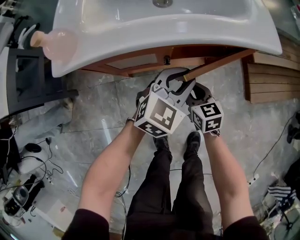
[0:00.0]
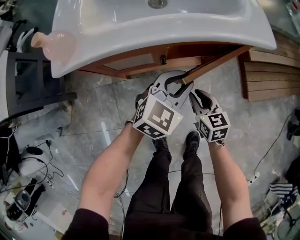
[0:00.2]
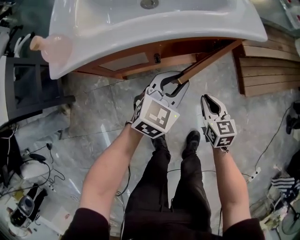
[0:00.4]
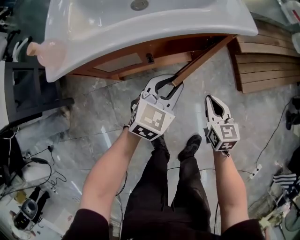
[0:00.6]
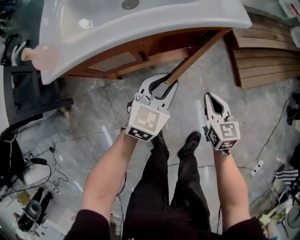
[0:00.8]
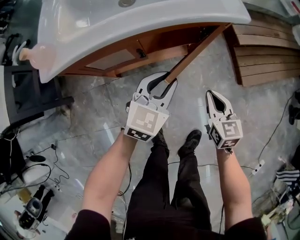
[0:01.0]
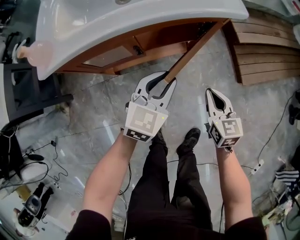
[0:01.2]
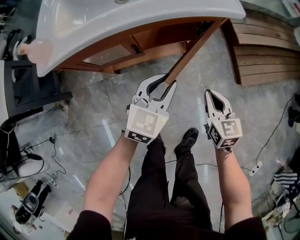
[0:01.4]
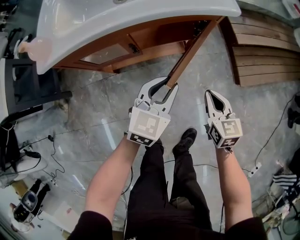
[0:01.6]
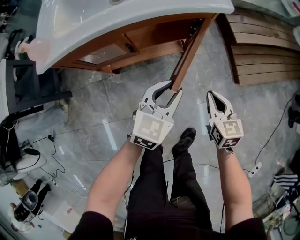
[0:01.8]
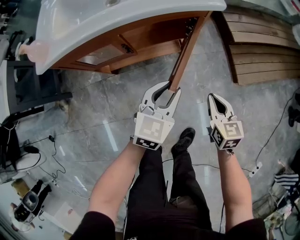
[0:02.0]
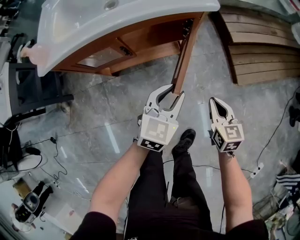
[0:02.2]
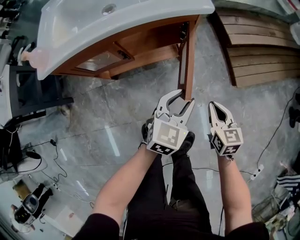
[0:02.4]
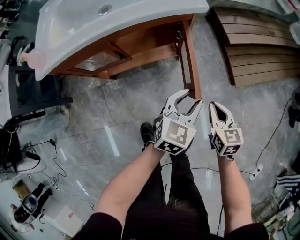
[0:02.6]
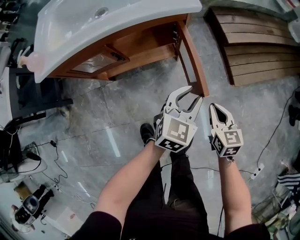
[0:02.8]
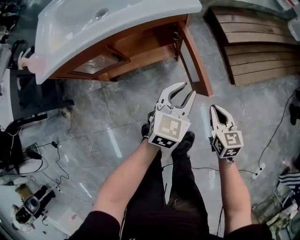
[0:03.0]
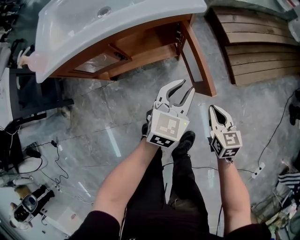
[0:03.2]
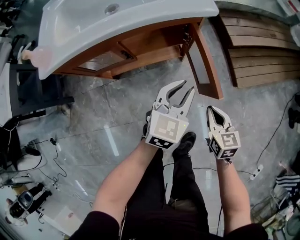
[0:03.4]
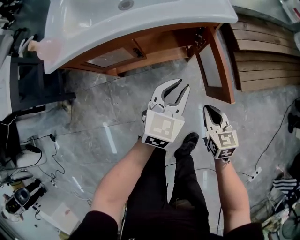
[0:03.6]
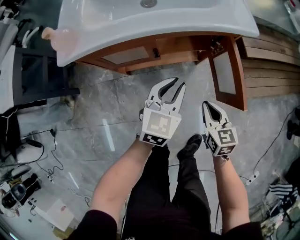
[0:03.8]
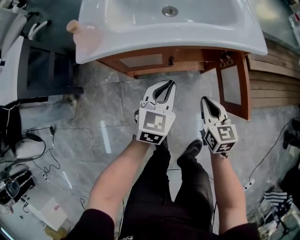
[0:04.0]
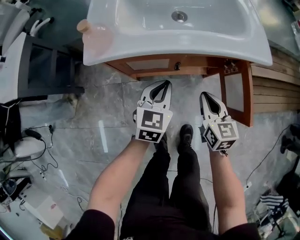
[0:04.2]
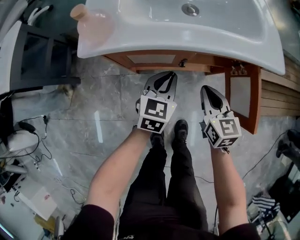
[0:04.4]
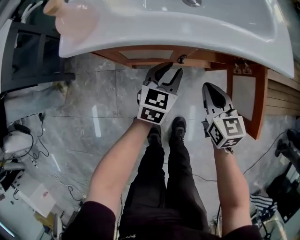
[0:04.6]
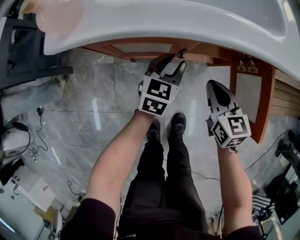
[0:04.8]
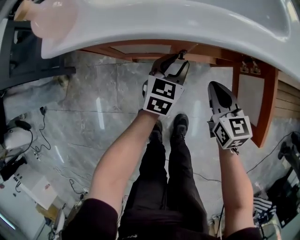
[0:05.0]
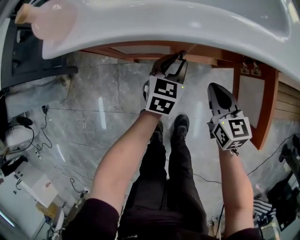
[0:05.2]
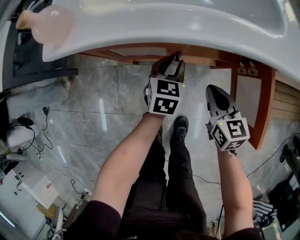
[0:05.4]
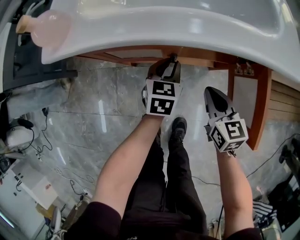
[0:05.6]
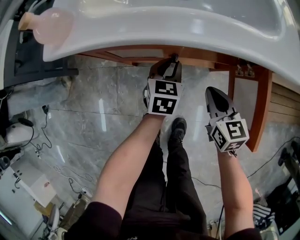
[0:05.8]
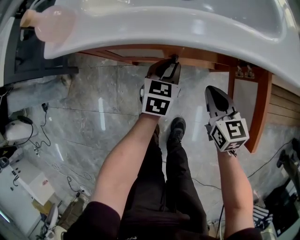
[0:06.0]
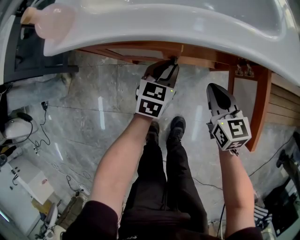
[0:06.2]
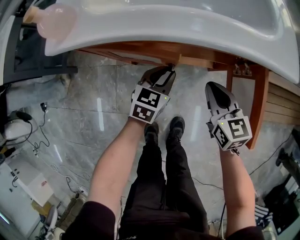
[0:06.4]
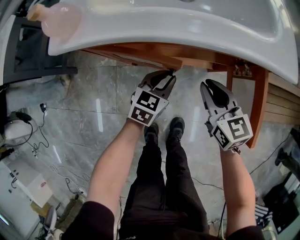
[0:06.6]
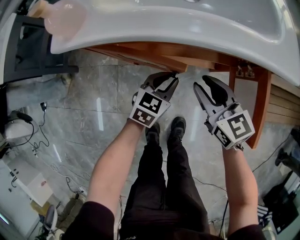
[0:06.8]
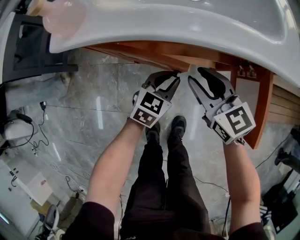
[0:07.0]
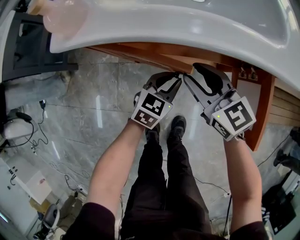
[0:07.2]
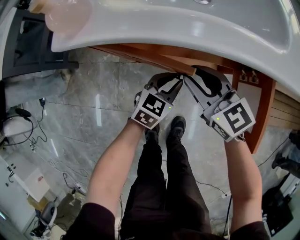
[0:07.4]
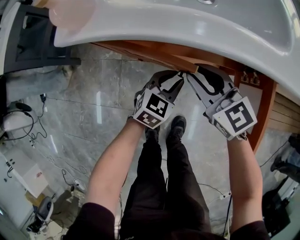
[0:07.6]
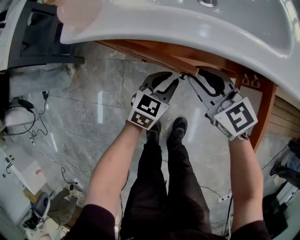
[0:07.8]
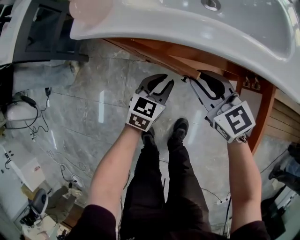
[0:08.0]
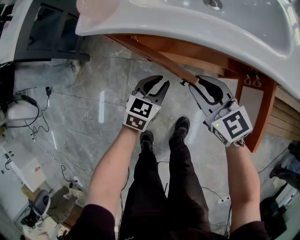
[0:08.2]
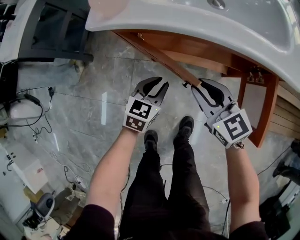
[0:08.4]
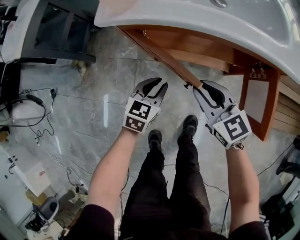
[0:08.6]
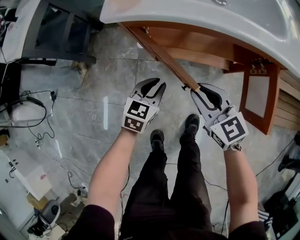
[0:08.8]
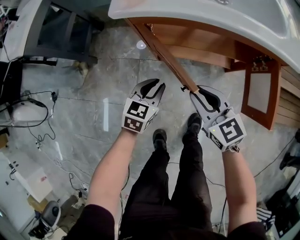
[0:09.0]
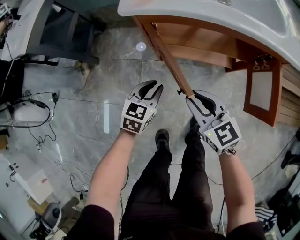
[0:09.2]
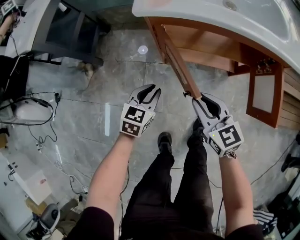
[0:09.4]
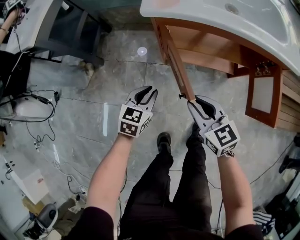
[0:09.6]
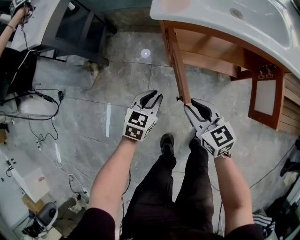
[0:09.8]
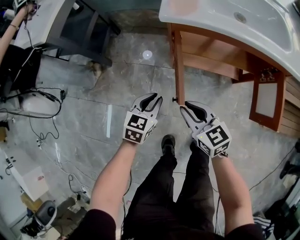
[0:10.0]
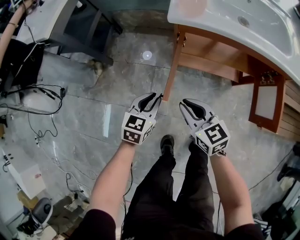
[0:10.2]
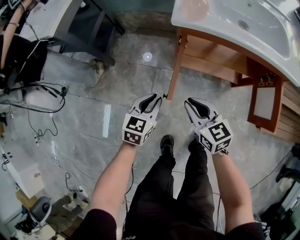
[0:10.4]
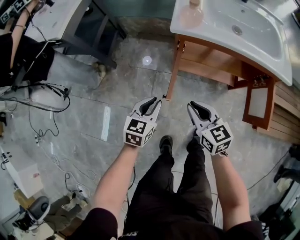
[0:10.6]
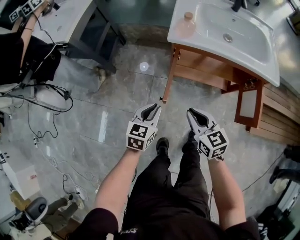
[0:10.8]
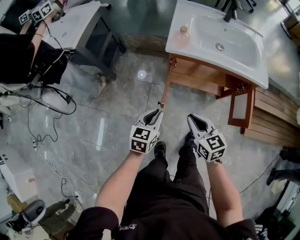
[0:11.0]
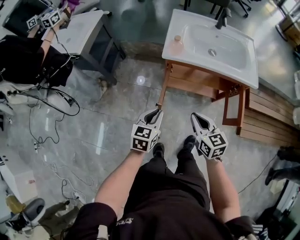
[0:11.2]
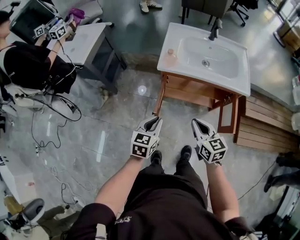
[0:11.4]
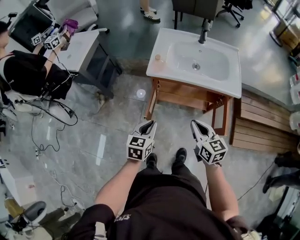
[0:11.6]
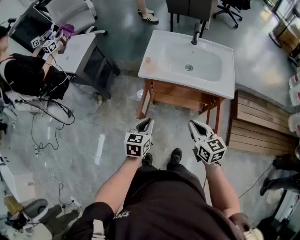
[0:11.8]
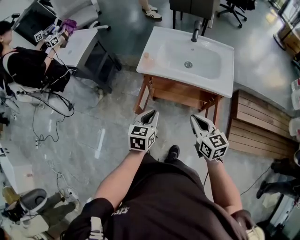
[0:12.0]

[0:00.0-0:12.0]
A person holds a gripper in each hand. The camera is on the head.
0:00.0 to 0:01.6: The left gripper is displaced to the right and backward by roughly 10 cm; the right gripper shifts some 20 cm to the right, and closes.
0:01.6 to 0:03.0: Both grippers travel together to the right, about 10 cm.
0:03.0 to 0:04.4: The left gripper shifts about 30 cm to the left, swivels about 20 degrees, and closes up. The right gripper is displaced to the left and forward by some 35 cm.
0:04.4 to 0:06.0: The left gripper heads downward, covering about 10 cm, while the right gripper travels downward and to the right by approximately 10 cm.
0:06.0 to 0:07.6: The right gripper goes roughly 15 cm to the left and upward, rotates approximately 30 degrees, and opens its fingers, while the left gripper heads backward, covering some 5 cm.
0:07.6 to 0:09.0: The left gripper is displaced to the left by about 20 cm. The right gripper goes approximately 15 cm backward and to the left.
0:09.0 to 0:10.4: The right gripper moves to the left, some 15 cm, while the left gripper travels to the left and upward by approximately 15 cm.
0:10.4 to 0:12.0: The two grippers go about 35 cm upward and to the right.

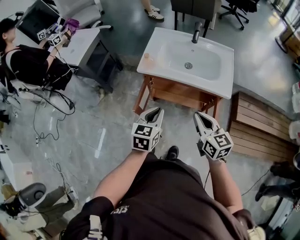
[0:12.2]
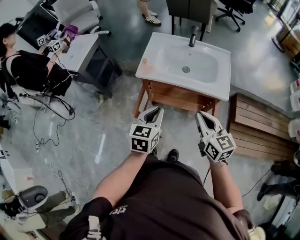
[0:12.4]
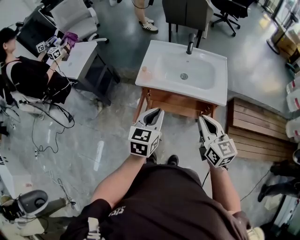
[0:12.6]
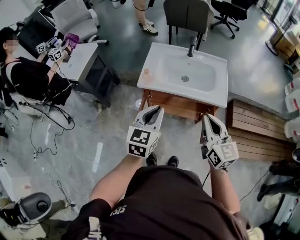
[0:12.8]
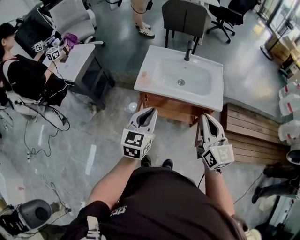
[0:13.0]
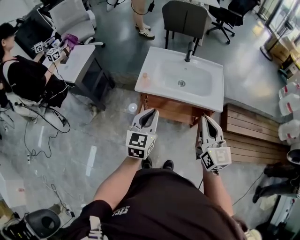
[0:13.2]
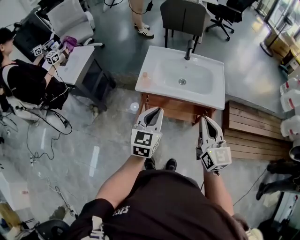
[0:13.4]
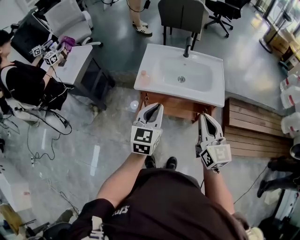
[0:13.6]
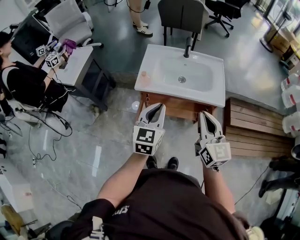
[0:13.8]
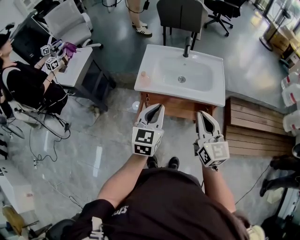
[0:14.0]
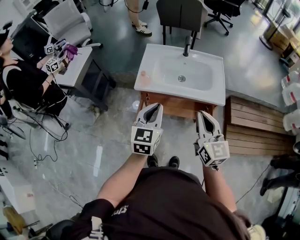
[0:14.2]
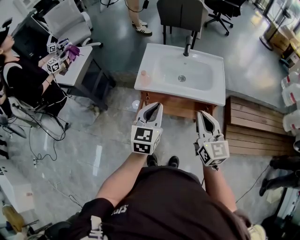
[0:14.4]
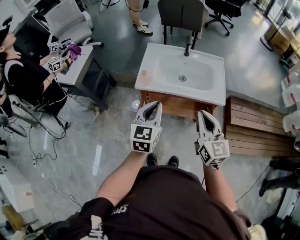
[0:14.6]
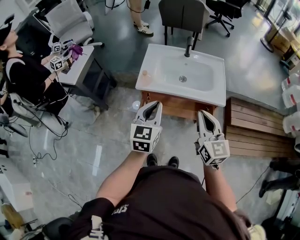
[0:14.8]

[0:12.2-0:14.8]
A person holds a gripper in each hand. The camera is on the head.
0:12.2 to 0:13.4: Both grippers travel together upward, approximately 10 cm. The right gripper rotates roughly 30 degrees.
0:13.4 to 0:14.8: The grippers move only a little.

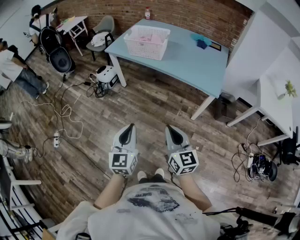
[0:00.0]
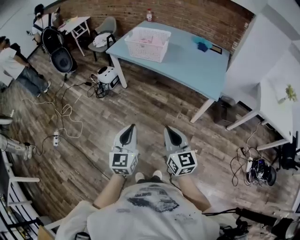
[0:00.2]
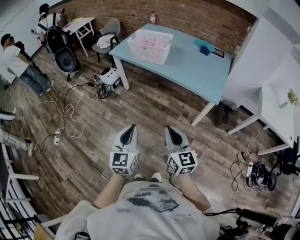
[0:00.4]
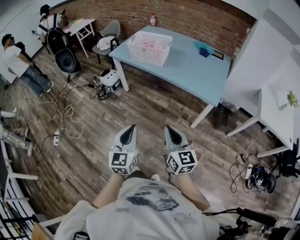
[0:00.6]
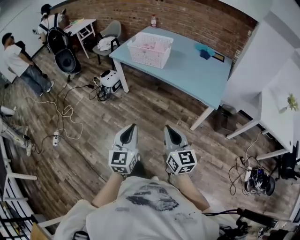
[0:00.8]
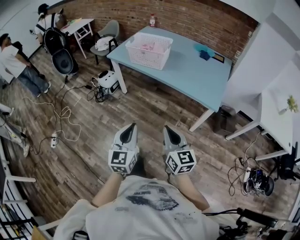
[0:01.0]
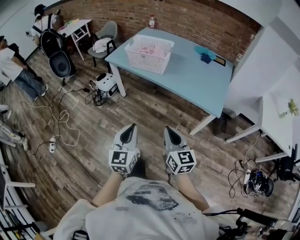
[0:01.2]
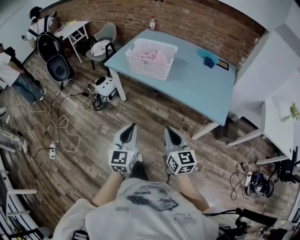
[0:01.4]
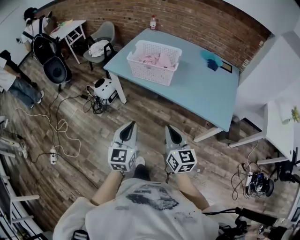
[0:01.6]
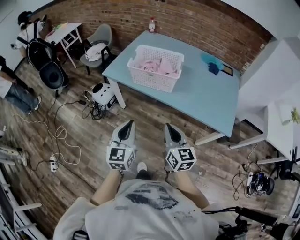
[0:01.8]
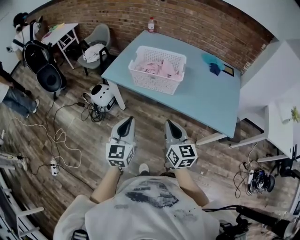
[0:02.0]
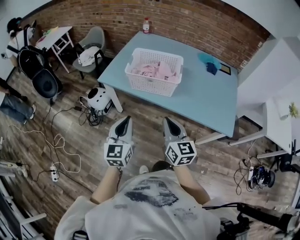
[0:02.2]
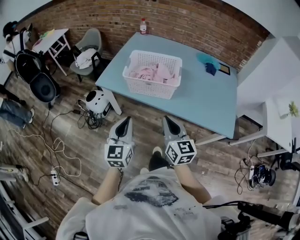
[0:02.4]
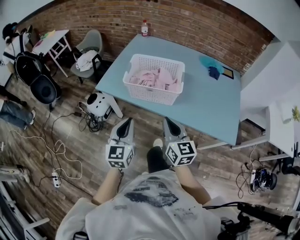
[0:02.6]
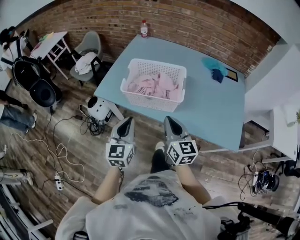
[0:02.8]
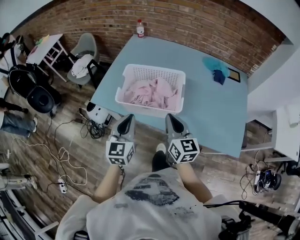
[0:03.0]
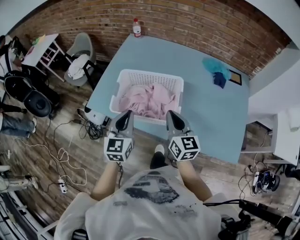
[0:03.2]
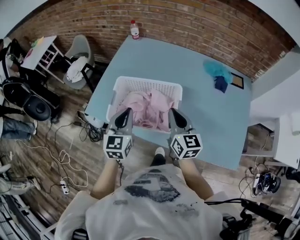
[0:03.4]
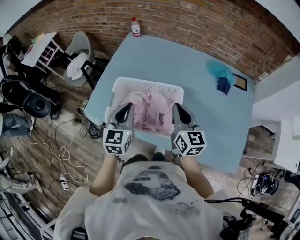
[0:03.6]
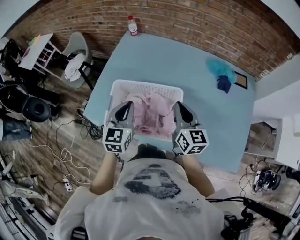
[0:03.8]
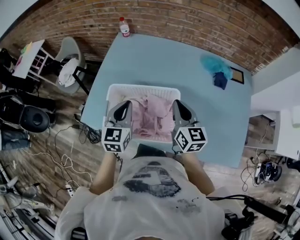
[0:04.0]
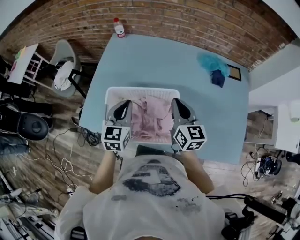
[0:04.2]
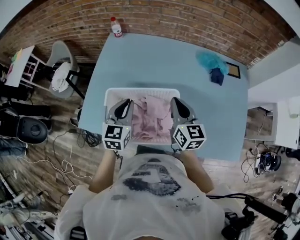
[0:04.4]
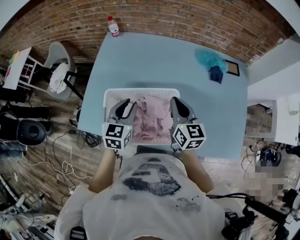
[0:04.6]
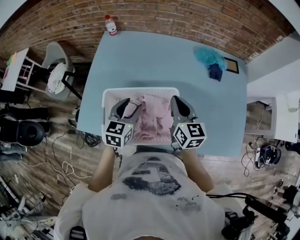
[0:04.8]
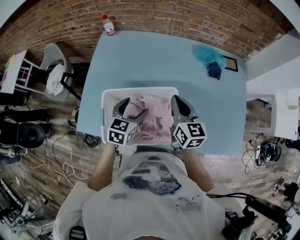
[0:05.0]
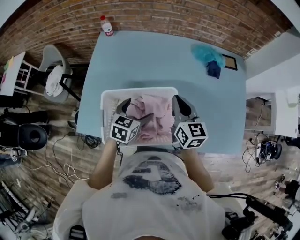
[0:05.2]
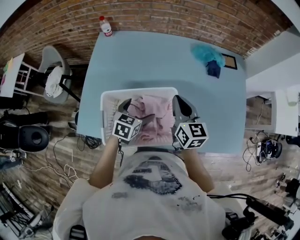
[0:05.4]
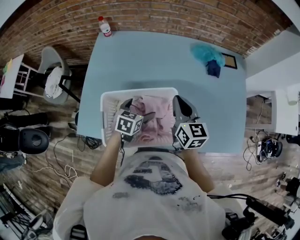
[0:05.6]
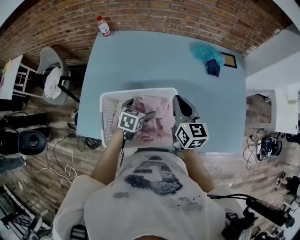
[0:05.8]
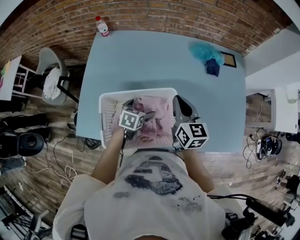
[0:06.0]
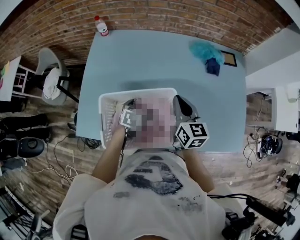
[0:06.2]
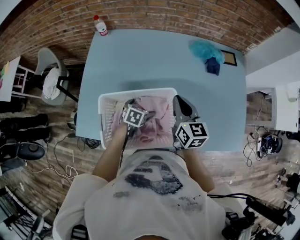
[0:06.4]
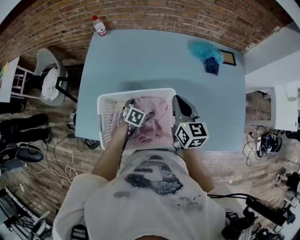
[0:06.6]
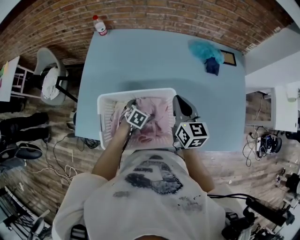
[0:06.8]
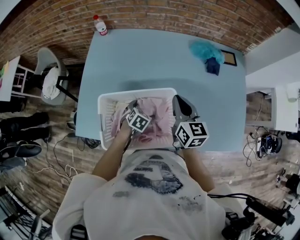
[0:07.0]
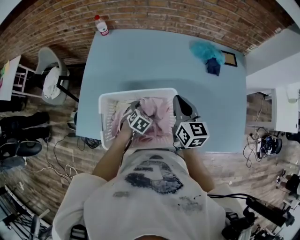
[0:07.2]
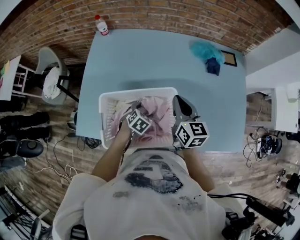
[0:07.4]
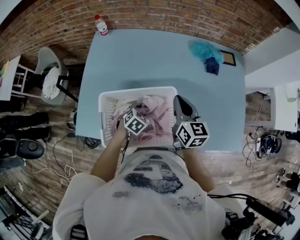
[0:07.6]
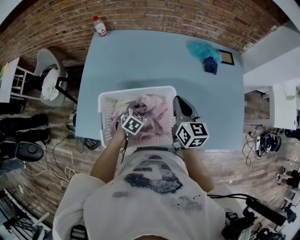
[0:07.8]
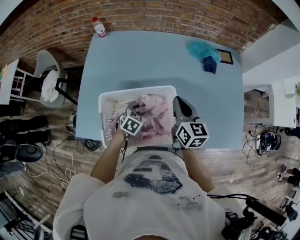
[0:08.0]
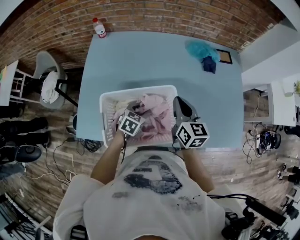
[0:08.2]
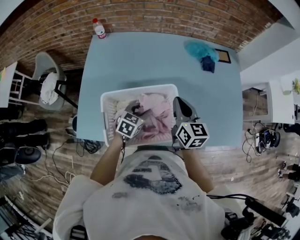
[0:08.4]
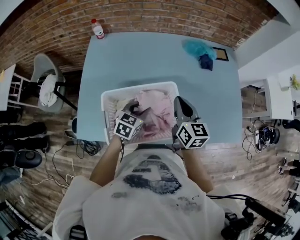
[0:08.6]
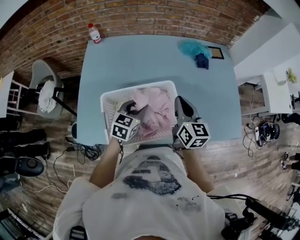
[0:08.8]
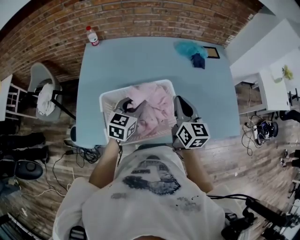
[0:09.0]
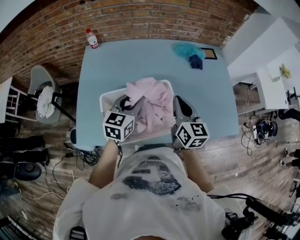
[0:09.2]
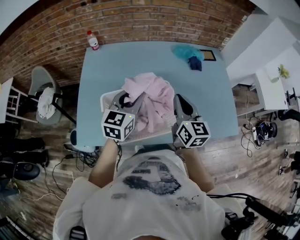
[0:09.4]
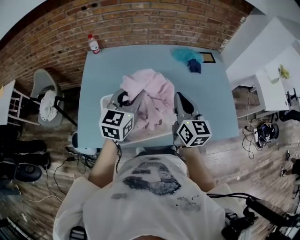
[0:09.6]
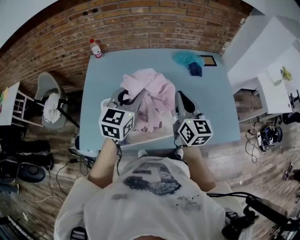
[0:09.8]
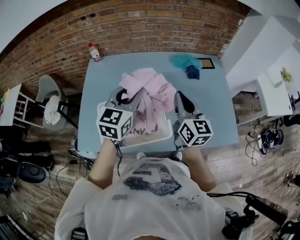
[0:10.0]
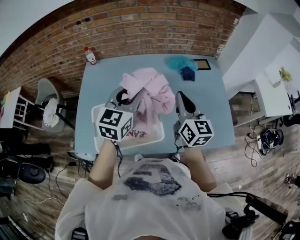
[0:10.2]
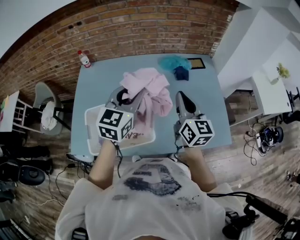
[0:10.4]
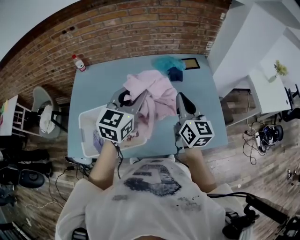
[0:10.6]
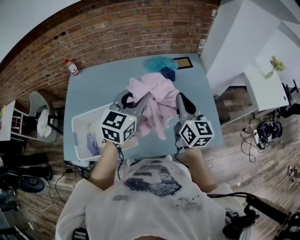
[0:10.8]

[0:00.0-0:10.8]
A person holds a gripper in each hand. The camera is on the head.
0:00.0 to 0:01.6: Both grippers travel together forward, about 30 cm.
0:01.6 to 0:03.0: Both grippers travel together forward, approximately 35 cm.
0:03.0 to 0:04.6: Both grippers move forward, roughly 25 cm. The left gripper turns by about 20 degrees.
0:04.6 to 0:06.2: The left gripper goes about 15 cm downward, rotates roughly 40 degrees, and opens.
0:06.2 to 0:07.8: The left gripper closes.
0:07.8 to 0:09.2: The right gripper moves backward, some 5 cm; the left gripper moves upward, some 20 cm, and tilts its fingers approximately 40 degrees upward.
0:09.2 to 0:10.8: The right gripper is displaced to the right by roughly 25 cm. The left gripper travels to the right and upward by approximately 30 cm.
